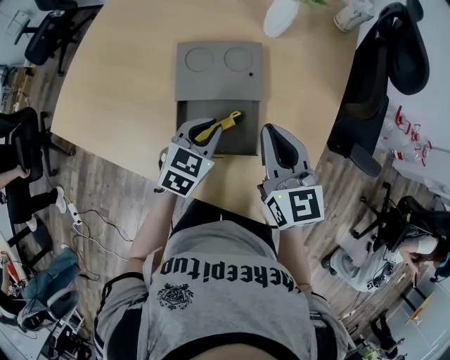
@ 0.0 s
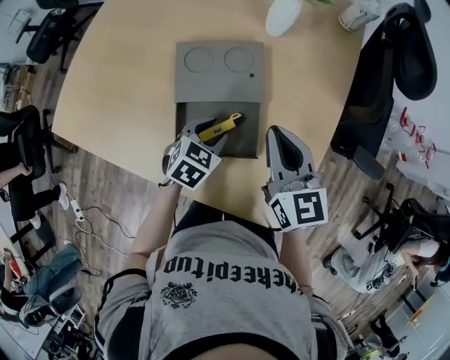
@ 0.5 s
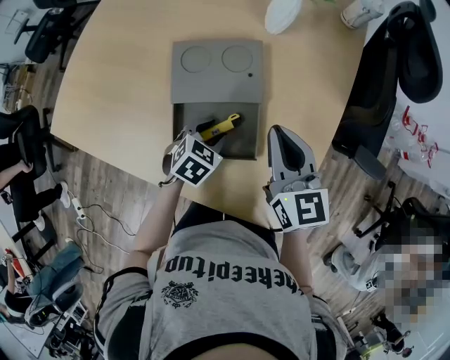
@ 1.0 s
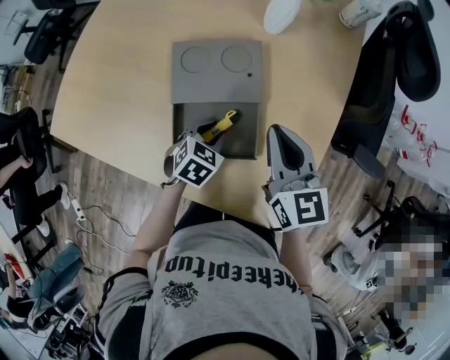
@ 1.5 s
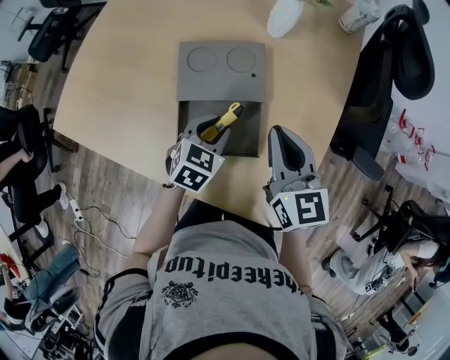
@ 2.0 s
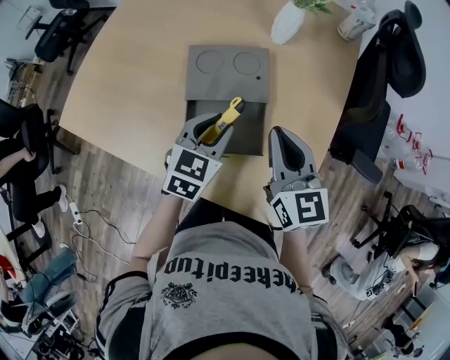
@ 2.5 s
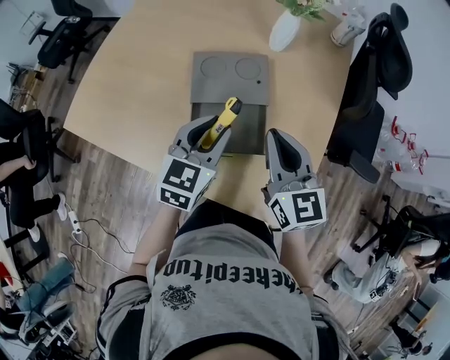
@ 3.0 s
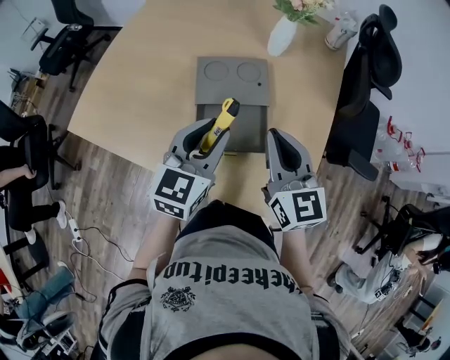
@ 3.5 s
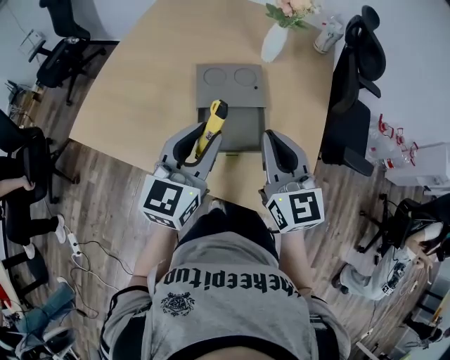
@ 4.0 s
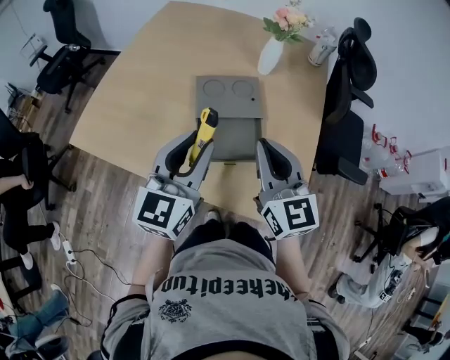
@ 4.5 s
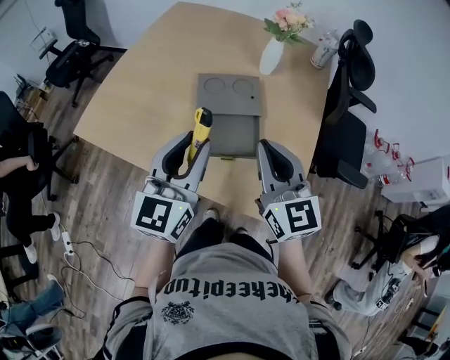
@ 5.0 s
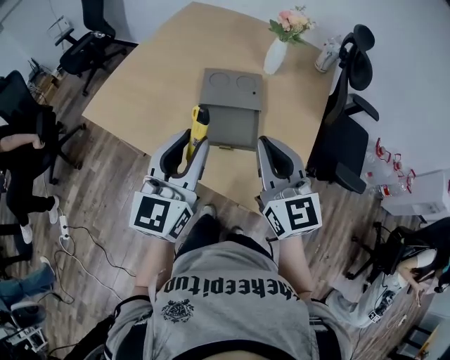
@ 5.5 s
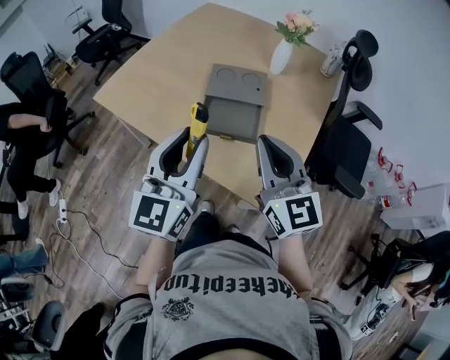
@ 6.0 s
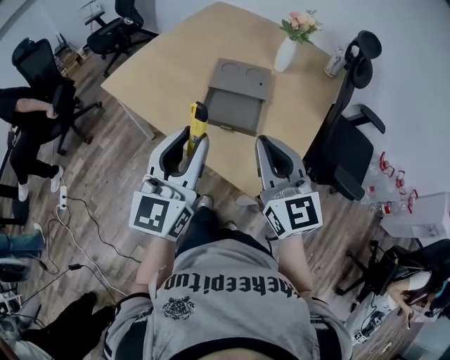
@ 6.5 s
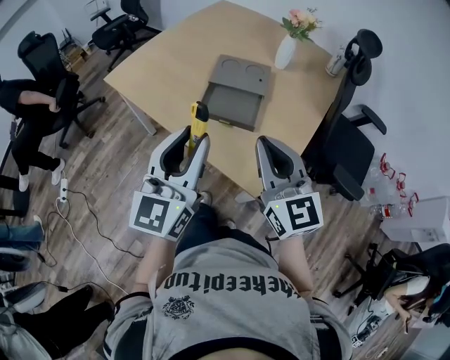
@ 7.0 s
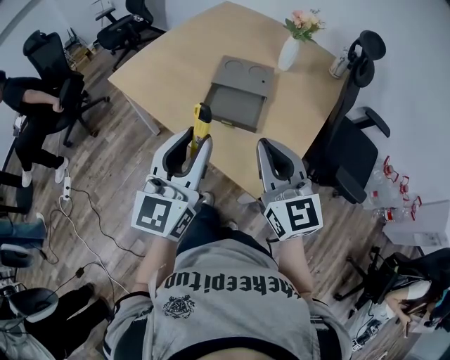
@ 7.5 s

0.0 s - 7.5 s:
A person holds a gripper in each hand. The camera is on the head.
0.0 s - 2.0 s: The left gripper reaches about 10 cm downward, then returns, and opens its fingers.
2.0 s - 4.0 s: The left gripper moves upward, backward and to the left, about 25 cm, and tilts its fingers some 40 degrees upward; the right gripper is displaced backward, upward and to the left by about 15 cm.
4.0 s - 5.5 s: The left gripper shifts approximately 10 cm backward and upward. The right gripper heads backward, covering roughly 5 cm.
5.5 s - 7.5 s: The grippers both shift backward by about 10 cm.

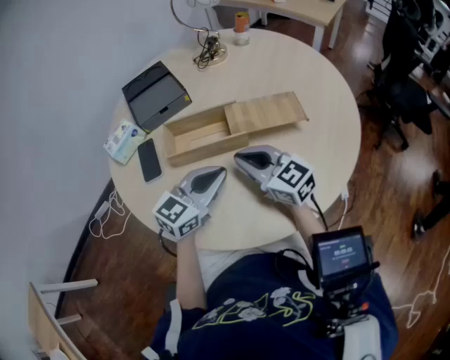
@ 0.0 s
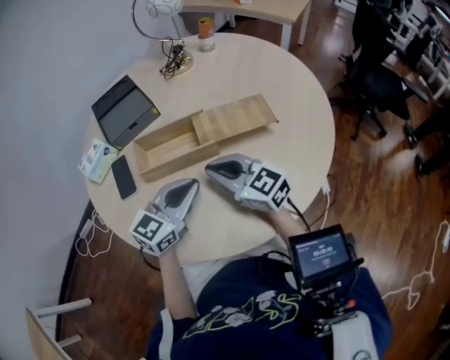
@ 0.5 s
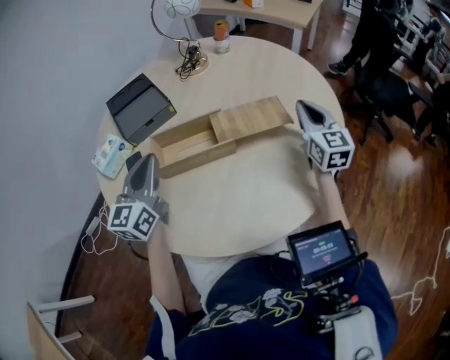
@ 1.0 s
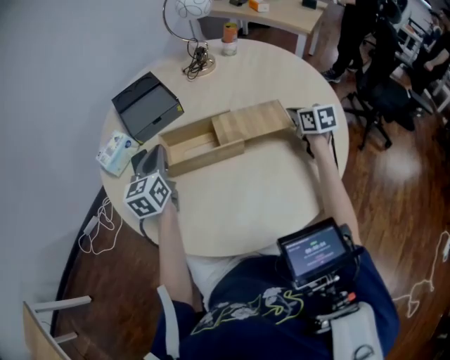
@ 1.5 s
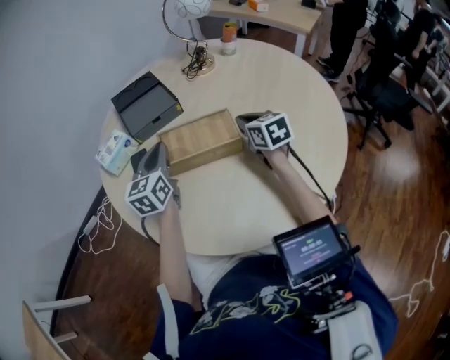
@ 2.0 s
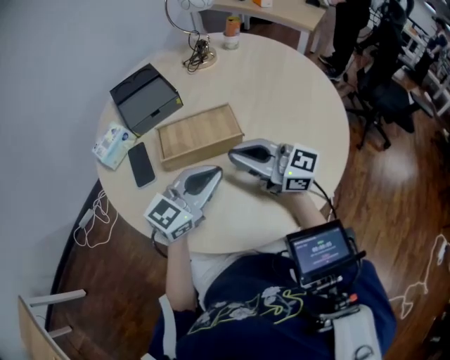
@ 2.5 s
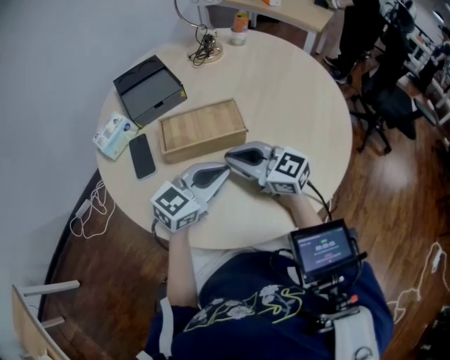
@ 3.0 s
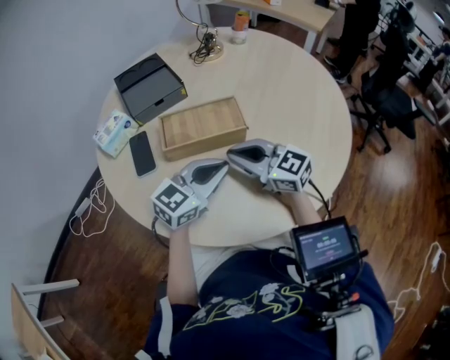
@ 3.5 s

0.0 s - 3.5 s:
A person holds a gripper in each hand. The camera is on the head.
0.0 s - 2.0 s: The left gripper shifts roughly 20 cm to the left and forward, and turns by roughly 40 degrees, while the right gripper goes about 15 cm forward, travels to the right and back again, some 20 cm each way, and turns by approximately 30 degrees.
2.0 s - 3.5 s: The right gripper heads backward and to the left, covering some 15 cm, and turns by approximately 40 degrees, while the left gripper goes some 20 cm to the right and backward, and rotates about 50 degrees.

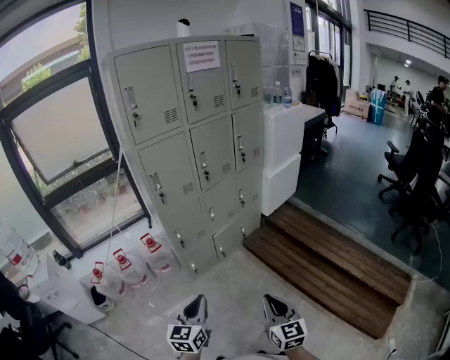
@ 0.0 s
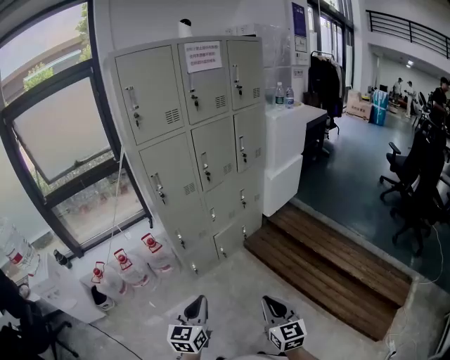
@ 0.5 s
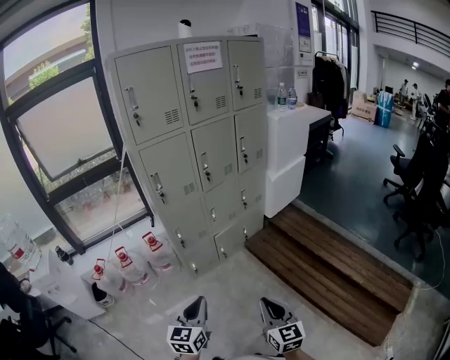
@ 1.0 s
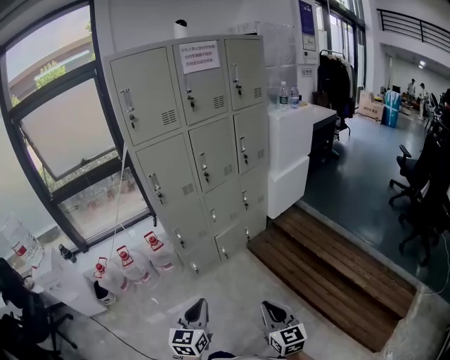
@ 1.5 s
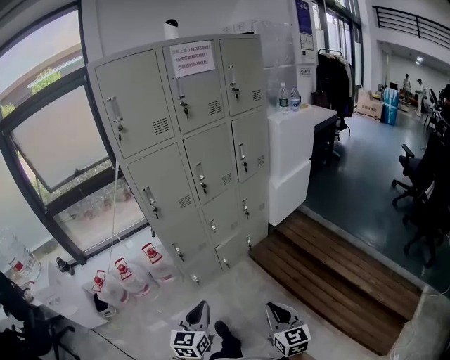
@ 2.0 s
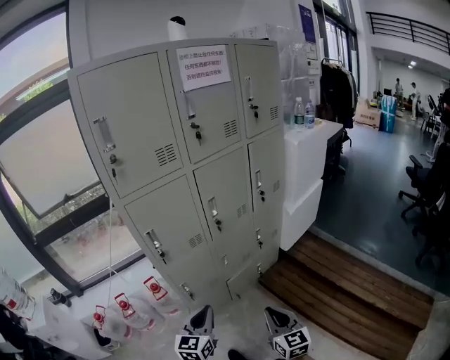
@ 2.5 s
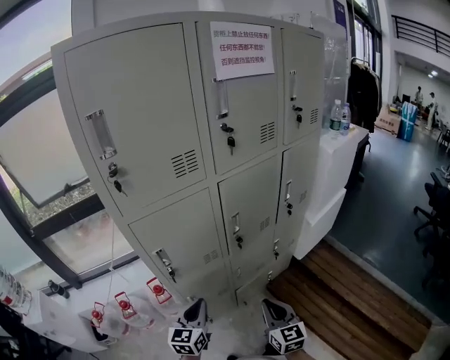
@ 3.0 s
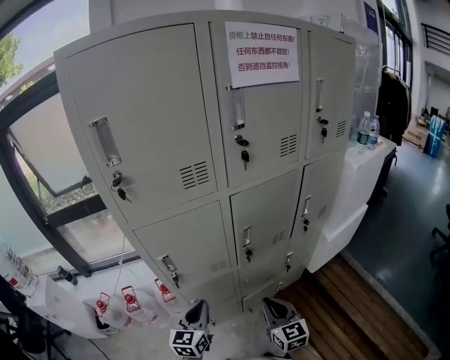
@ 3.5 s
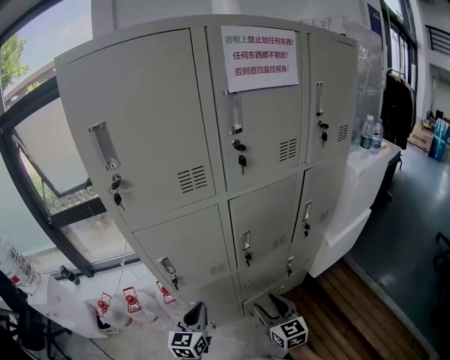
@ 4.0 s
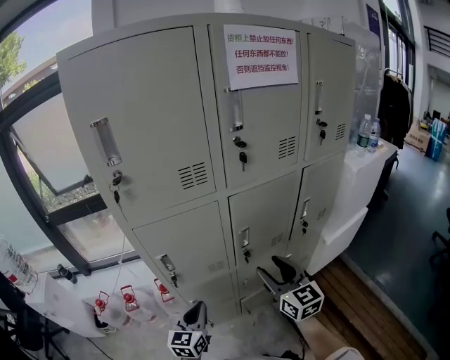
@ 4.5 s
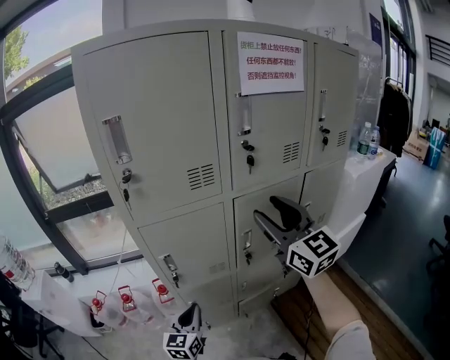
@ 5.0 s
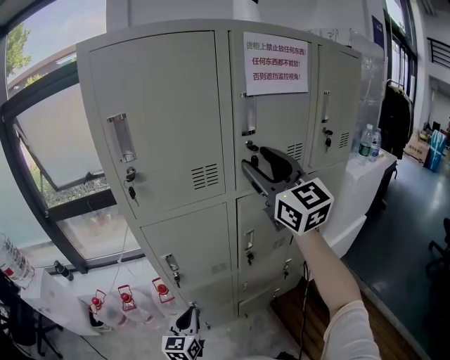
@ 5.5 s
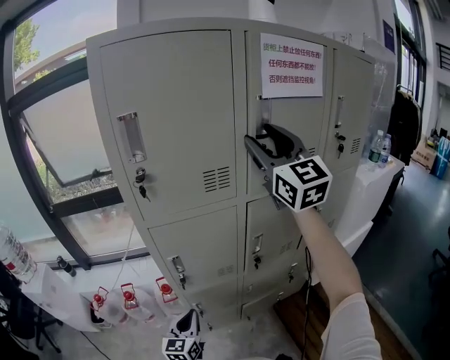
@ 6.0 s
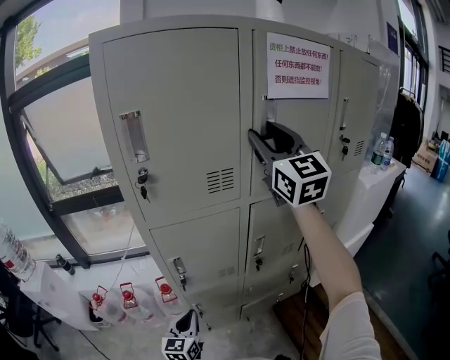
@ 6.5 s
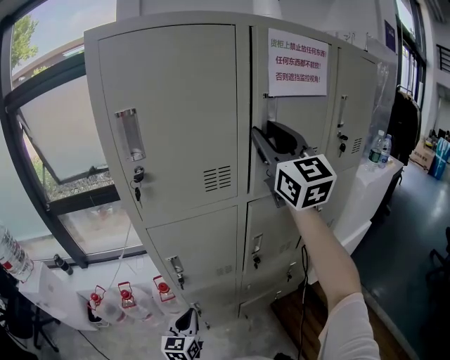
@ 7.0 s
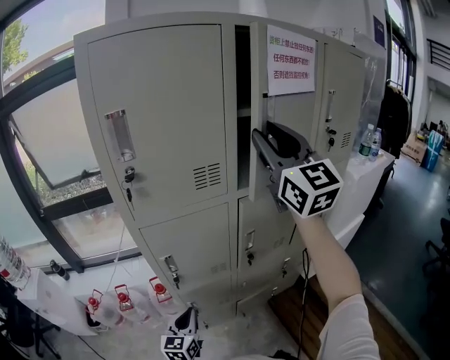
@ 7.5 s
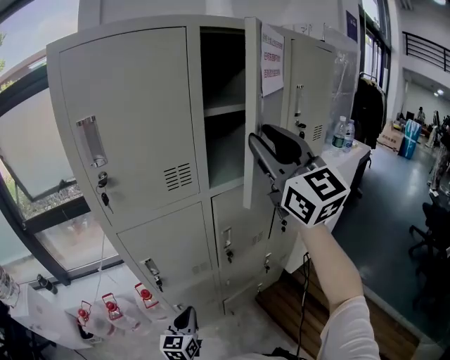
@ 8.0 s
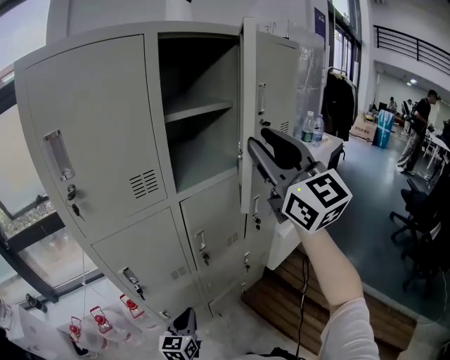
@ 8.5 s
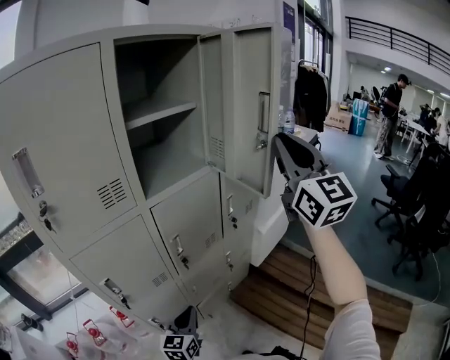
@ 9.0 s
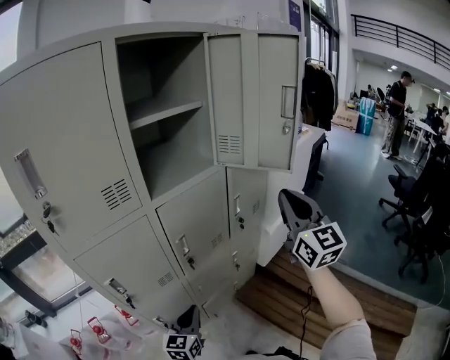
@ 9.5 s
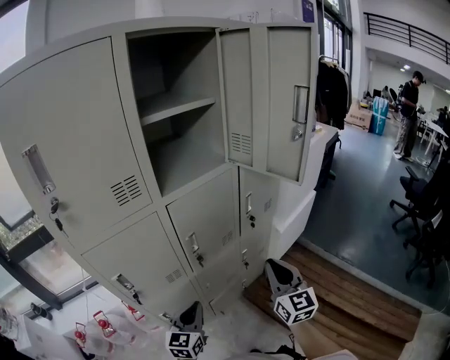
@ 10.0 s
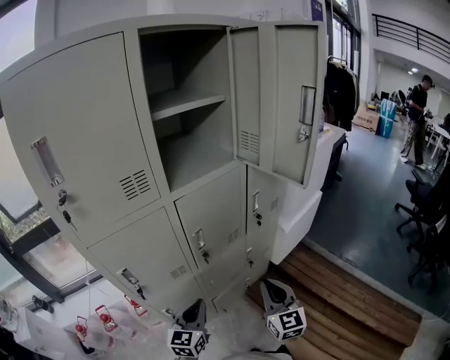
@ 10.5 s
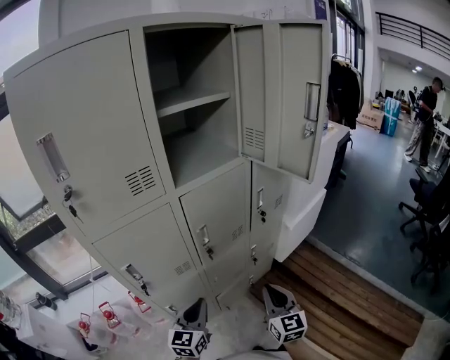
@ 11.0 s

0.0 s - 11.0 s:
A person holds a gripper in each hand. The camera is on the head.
0.0 s - 2.0 s: Both grippers travel together forward and to the right, roughly 10 cm.
2.0 s - 3.5 s: The pair of grippers is taken forward, roughly 50 cm.
3.5 s - 5.5 s: The right gripper travels upward by some 40 cm, turns by about 30 degrees, and opens its fingers.
5.5 s - 7.5 s: The right gripper heads upward, covering approximately 5 cm.
7.5 s - 9.0 s: The left gripper shifts by roughly 15 cm, and changes its angle by about 20 degrees. The right gripper shifts by about 25 cm, rotates approximately 30 degrees, and closes its fingers.
9.0 s - 11.0 s: The right gripper goes some 40 cm downward, and swivels approximately 30 degrees.

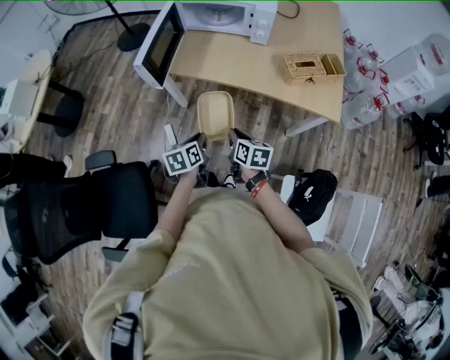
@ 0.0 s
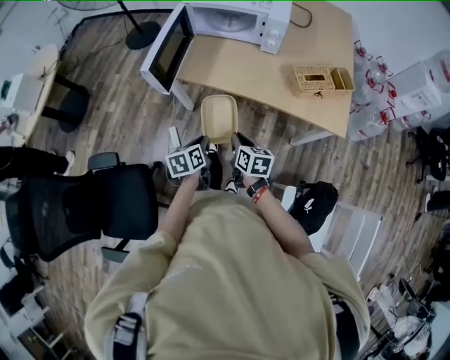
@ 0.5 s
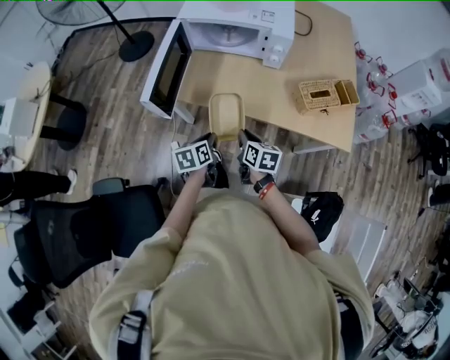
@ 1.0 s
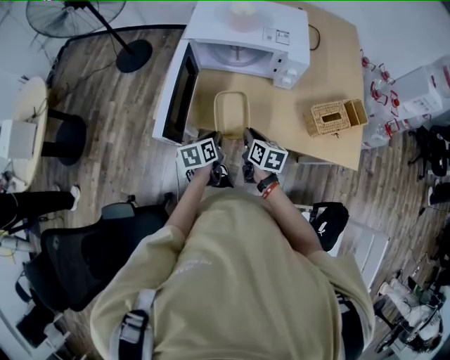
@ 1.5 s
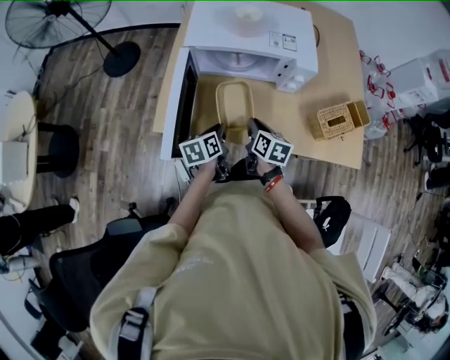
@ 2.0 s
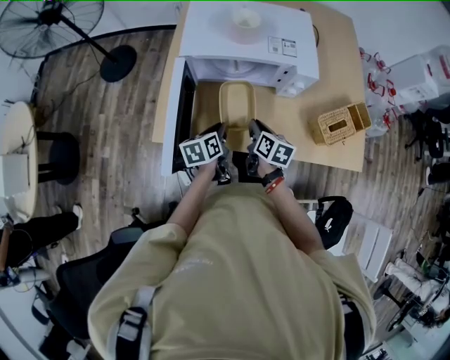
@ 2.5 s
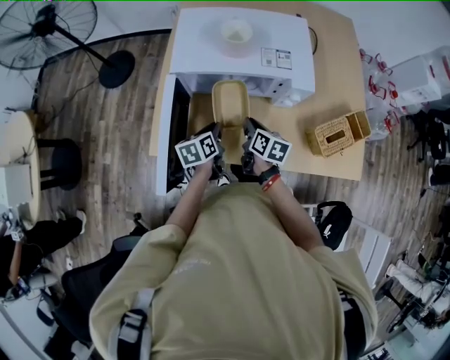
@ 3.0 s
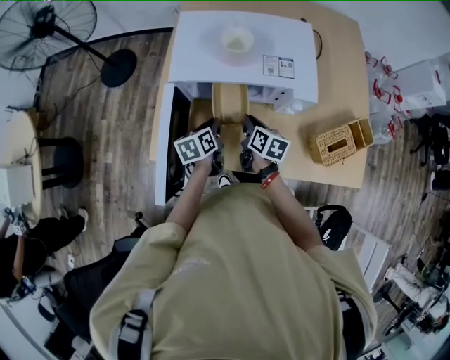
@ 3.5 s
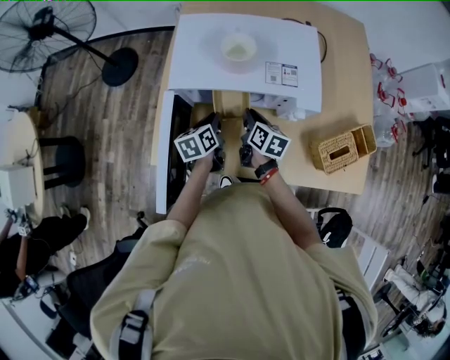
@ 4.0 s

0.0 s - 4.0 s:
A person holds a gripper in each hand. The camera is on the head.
0.0 s - 2.0 s: Both grippers move forward, roughly 35 cm.
2.0 s - 4.0 s: Both grippers travel together forward, roughly 20 cm.
